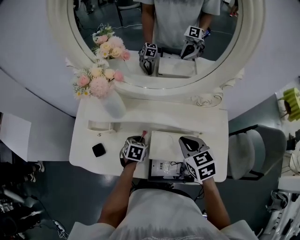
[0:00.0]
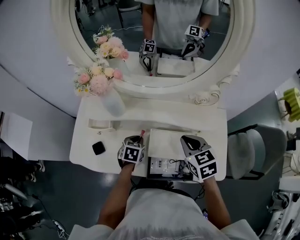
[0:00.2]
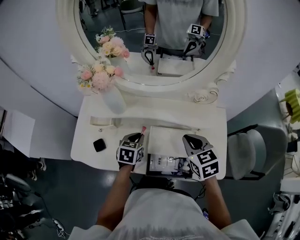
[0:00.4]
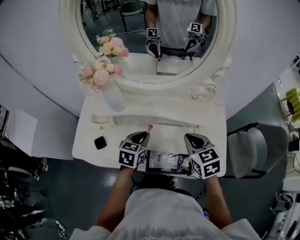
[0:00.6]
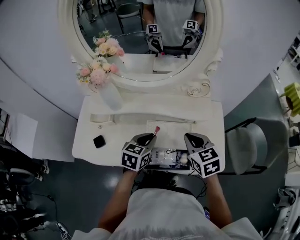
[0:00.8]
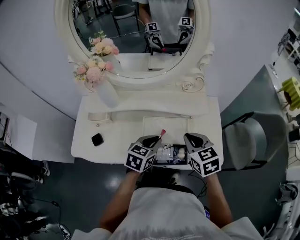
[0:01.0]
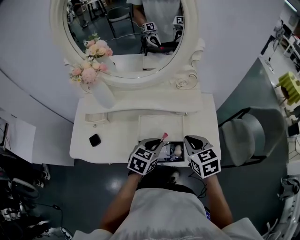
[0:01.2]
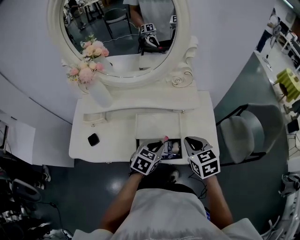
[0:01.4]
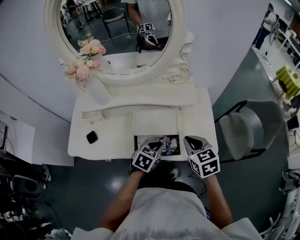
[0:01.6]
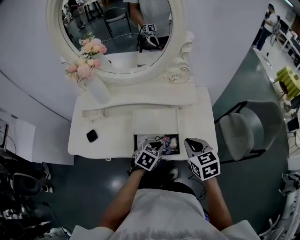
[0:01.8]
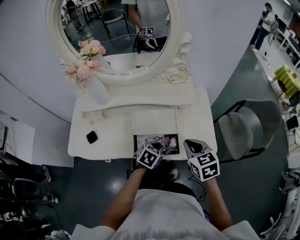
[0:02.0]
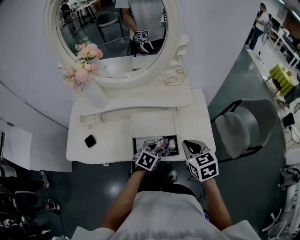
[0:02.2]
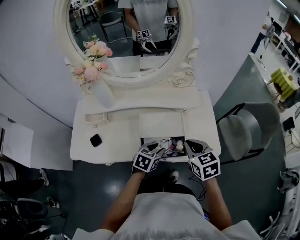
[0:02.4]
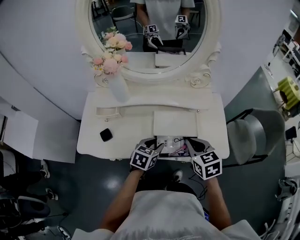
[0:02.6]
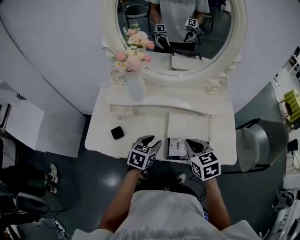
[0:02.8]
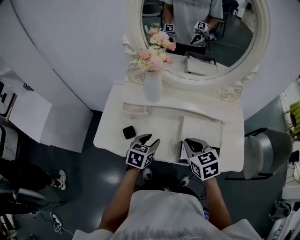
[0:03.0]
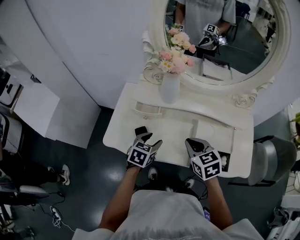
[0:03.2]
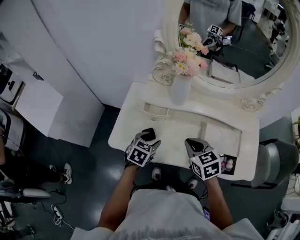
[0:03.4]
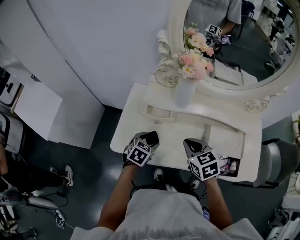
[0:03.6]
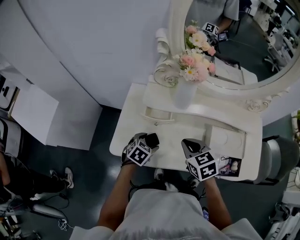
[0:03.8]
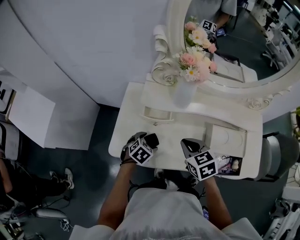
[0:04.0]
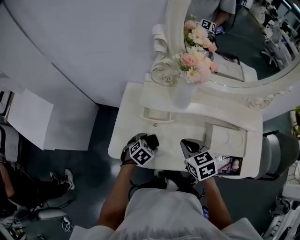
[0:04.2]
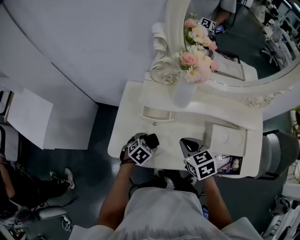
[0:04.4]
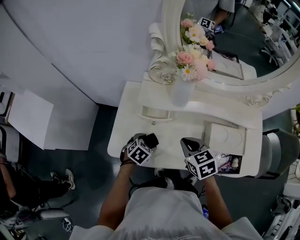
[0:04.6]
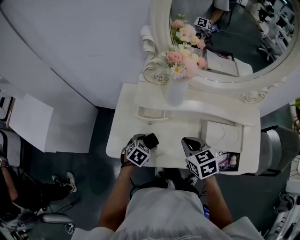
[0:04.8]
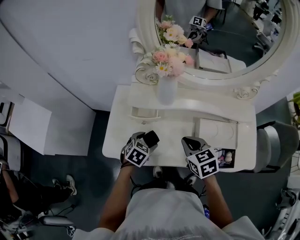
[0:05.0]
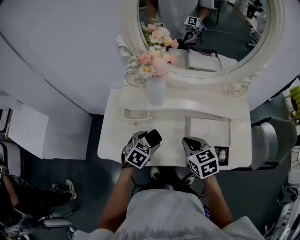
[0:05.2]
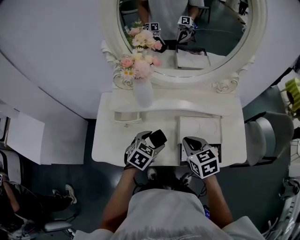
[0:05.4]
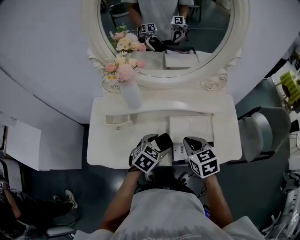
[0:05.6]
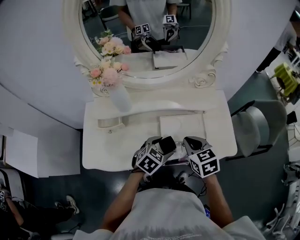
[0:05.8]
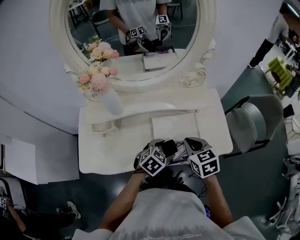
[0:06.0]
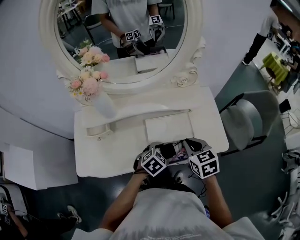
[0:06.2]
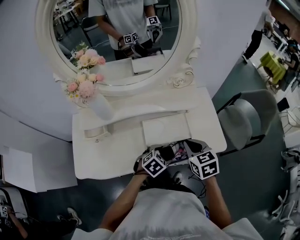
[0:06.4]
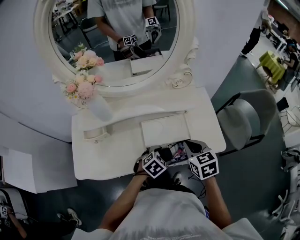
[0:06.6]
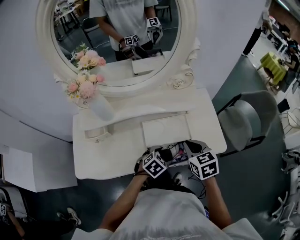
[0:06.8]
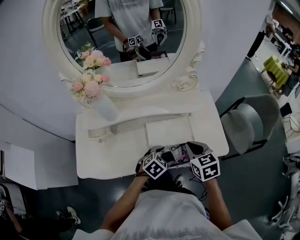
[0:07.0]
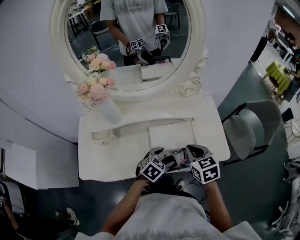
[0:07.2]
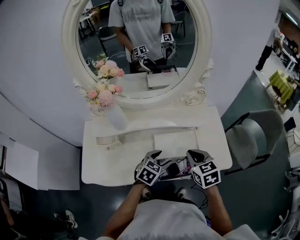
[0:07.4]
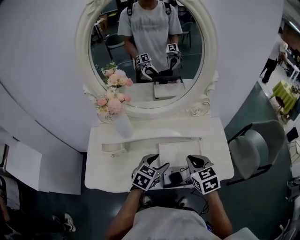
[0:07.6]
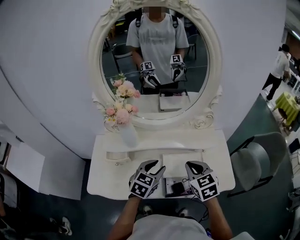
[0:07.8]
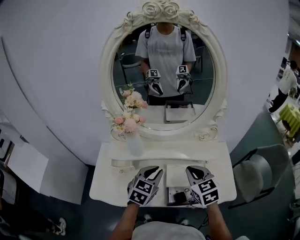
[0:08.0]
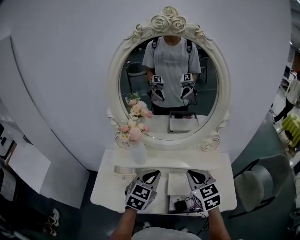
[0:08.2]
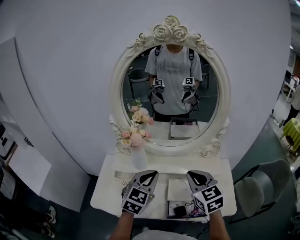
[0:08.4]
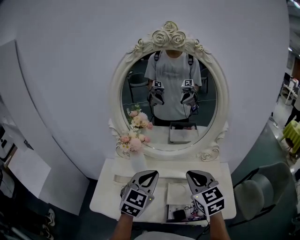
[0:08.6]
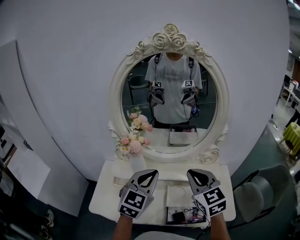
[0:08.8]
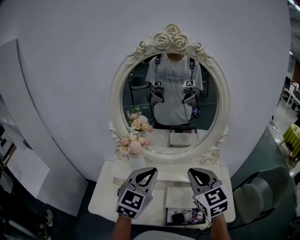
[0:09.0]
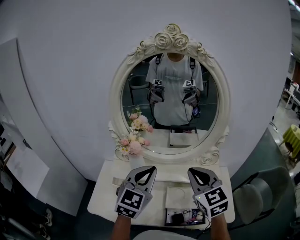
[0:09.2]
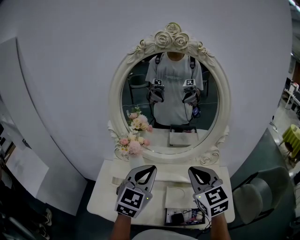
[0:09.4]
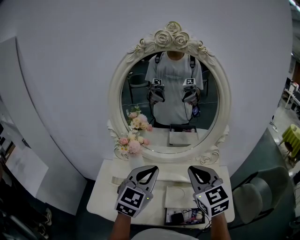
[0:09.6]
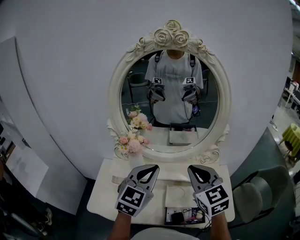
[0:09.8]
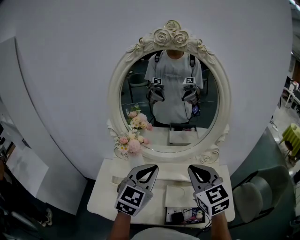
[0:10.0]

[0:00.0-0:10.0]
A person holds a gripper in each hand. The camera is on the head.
0:00.0 to 0:01.4: The right gripper moves backward and to the right, roughly 15 cm; the left gripper travels to the right, backward and upward by some 25 cm, and swivels about 30 degrees.
0:01.4 to 0:02.8: Both grippers move to the left, approximately 15 cm.
0:02.8 to 0:04.2: The left gripper shifts roughly 25 cm to the left and downward, turns by some 30 degrees, and opens up. Meanwhile the right gripper moves to the left, roughly 25 cm.
0:04.2 to 0:05.8: The two grippers go some 30 cm to the right. The left gripper rotates some 20 degrees.
0:05.8 to 0:07.2: The grippers both shift to the right by some 5 cm.
0:07.2 to 0:08.6: Both grippers travel together upward and to the left, about 30 cm. The right gripper turns by approximately 30 degrees. Meanwhile the left gripper angles its fingers upward, by some 30 degrees, and closes up.
0:08.6 to 0:10.0: The grippers move only a little.

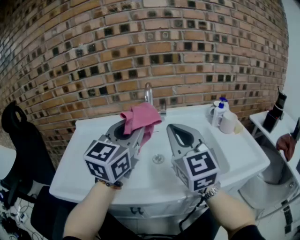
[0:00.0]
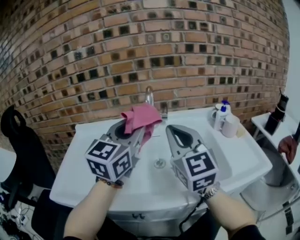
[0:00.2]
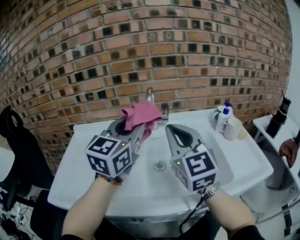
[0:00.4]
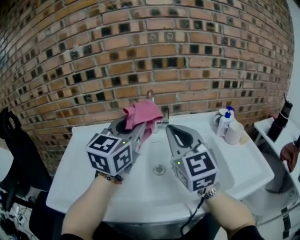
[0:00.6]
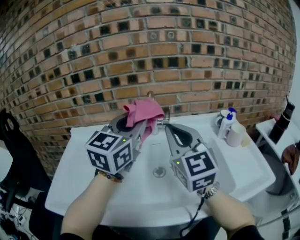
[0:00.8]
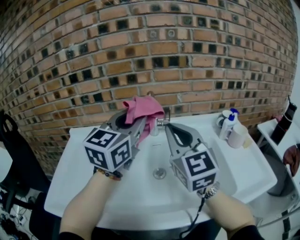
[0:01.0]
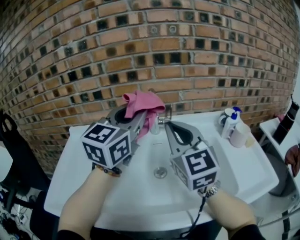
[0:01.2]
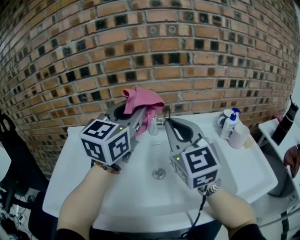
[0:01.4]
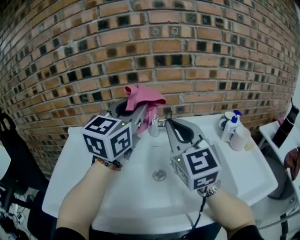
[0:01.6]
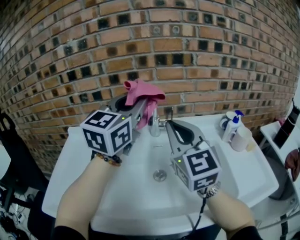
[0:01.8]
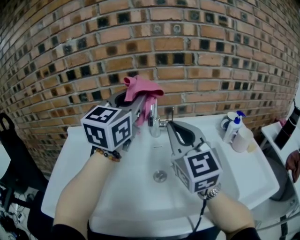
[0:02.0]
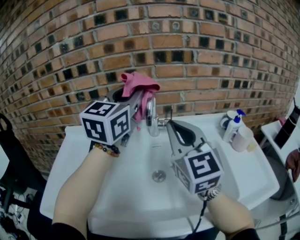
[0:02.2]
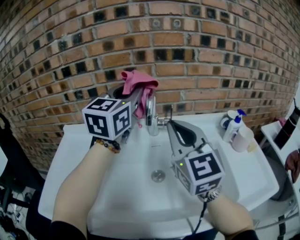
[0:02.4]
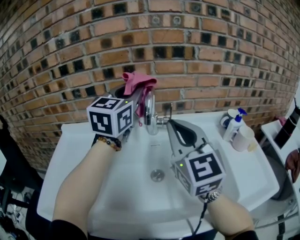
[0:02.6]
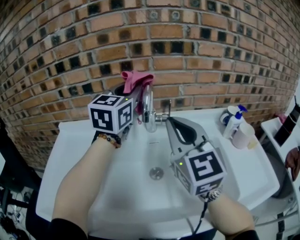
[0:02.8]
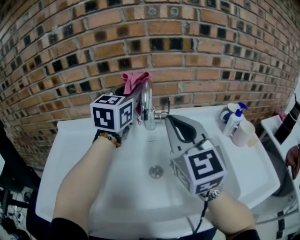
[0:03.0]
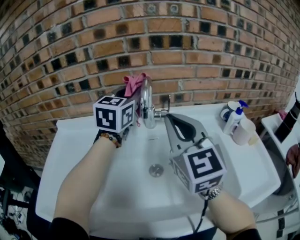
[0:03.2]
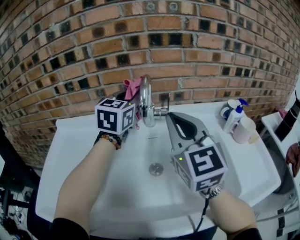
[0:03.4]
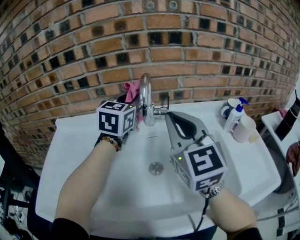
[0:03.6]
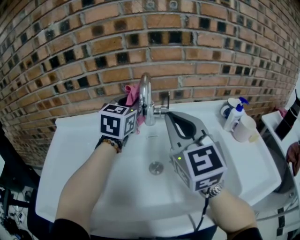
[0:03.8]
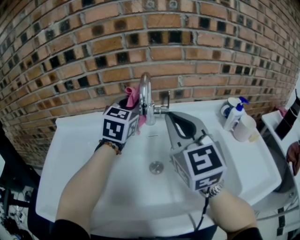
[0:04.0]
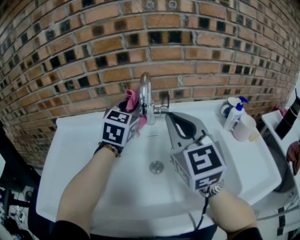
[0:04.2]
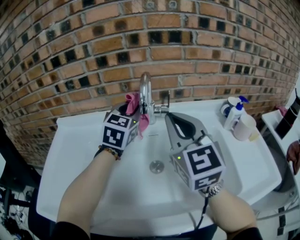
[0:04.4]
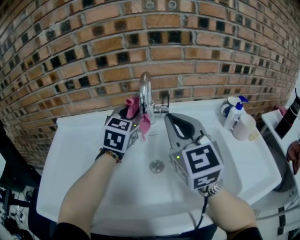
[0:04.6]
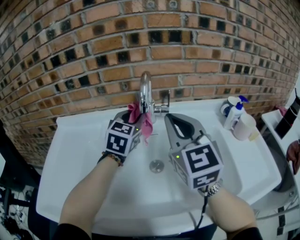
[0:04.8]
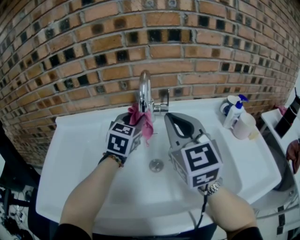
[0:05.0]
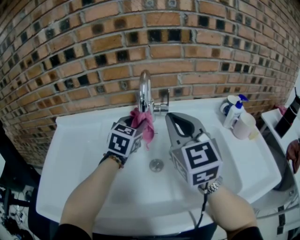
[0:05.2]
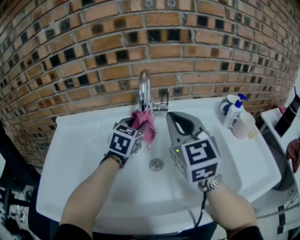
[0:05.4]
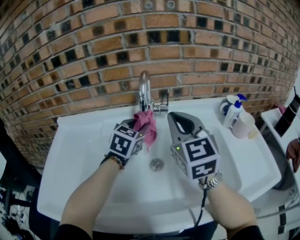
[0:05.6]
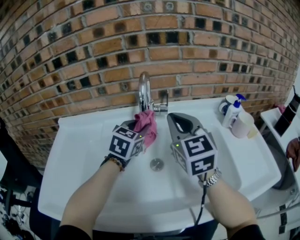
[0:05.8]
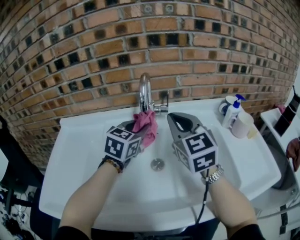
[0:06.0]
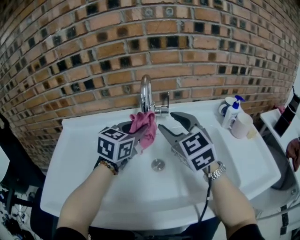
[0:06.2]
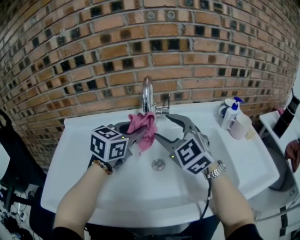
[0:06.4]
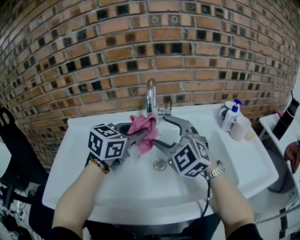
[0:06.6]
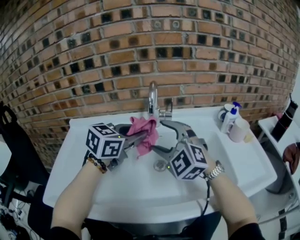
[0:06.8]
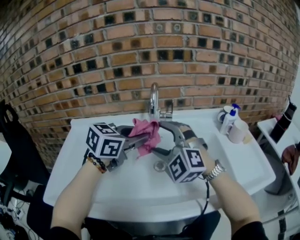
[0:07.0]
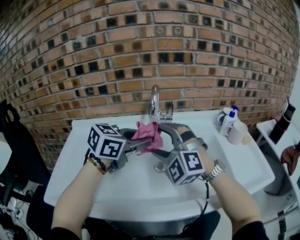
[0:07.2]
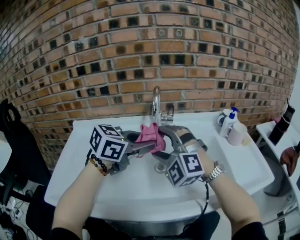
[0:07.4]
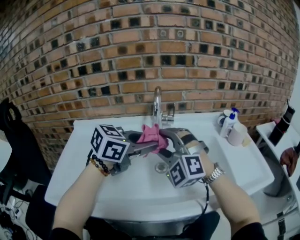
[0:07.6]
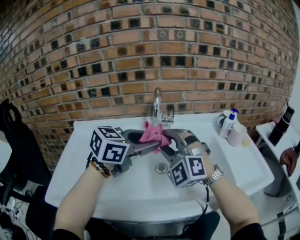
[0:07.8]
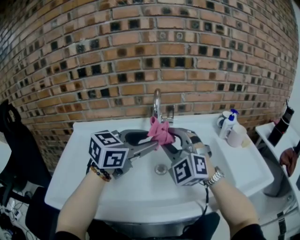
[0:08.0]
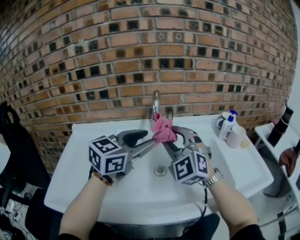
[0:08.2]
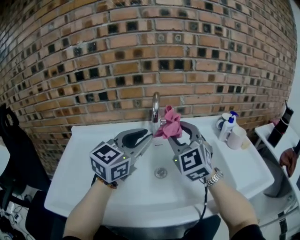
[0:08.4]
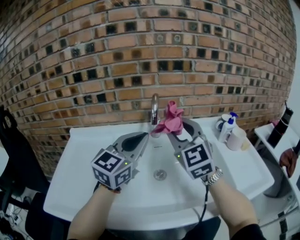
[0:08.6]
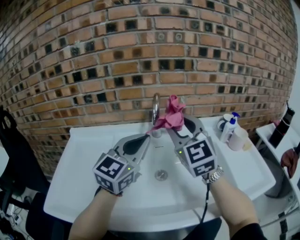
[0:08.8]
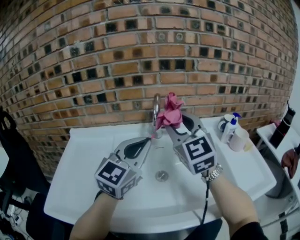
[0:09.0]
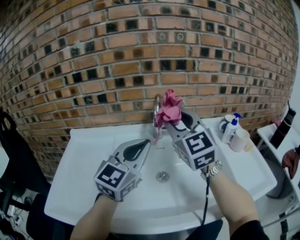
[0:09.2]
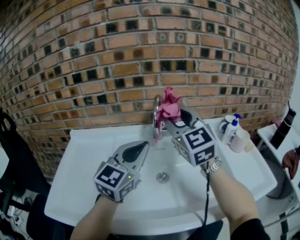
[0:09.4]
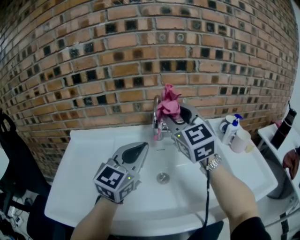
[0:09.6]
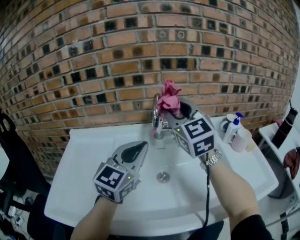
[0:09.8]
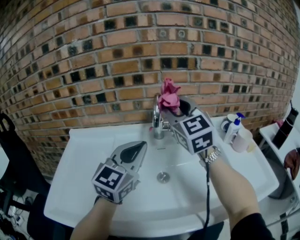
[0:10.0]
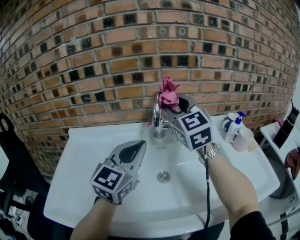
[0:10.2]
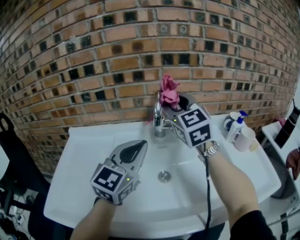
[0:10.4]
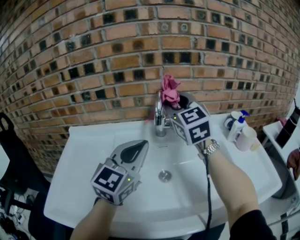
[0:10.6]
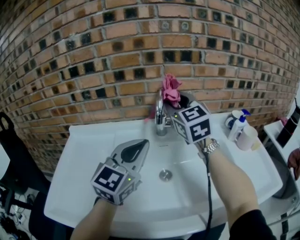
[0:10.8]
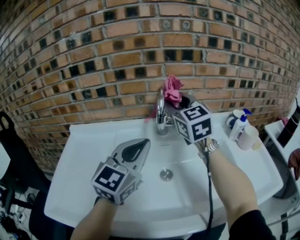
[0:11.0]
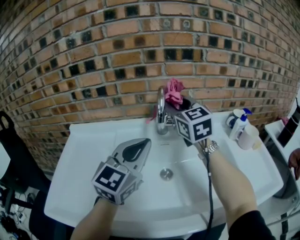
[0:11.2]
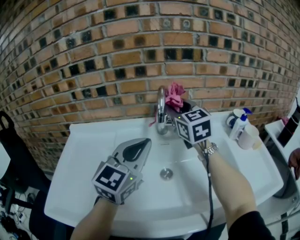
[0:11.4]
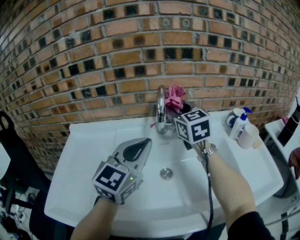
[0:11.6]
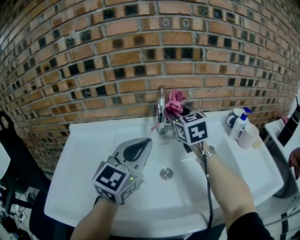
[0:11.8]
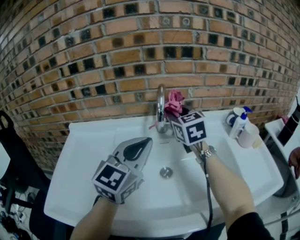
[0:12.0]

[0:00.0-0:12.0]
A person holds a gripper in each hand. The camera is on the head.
0:00.0 to 0:01.6: The grippers both shift forward by some 15 cm.
0:01.6 to 0:03.0: The left gripper shifts about 15 cm forward and downward.
0:03.0 to 0:04.4: The left gripper shifts some 10 cm downward.
0:04.4 to 0:06.0: The left gripper is displaced downward by some 5 cm.
0:06.0 to 0:07.6: The left gripper shifts approximately 15 cm backward and upward, and swivels approximately 30 degrees, while the right gripper heads backward and to the left, covering roughly 10 cm, rolls counterclockwise, seen from behind, by roughly 60 degrees, and opens its fingers.
0:07.6 to 0:09.0: The right gripper heads upward and forward, covering approximately 10 cm, and rotates around the line of its fingers by some 40 degrees, clockwise from behind; the left gripper changes its angle by roughly 40 degrees, and closes up.
0:09.0 to 0:10.4: The right gripper travels forward by roughly 10 cm.
0:10.4 to 0:12.0: The right gripper moves downward, approximately 10 cm.

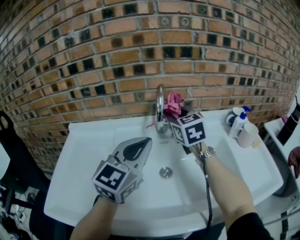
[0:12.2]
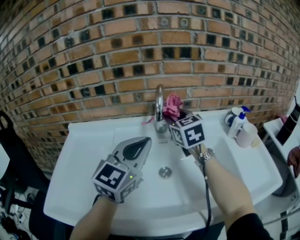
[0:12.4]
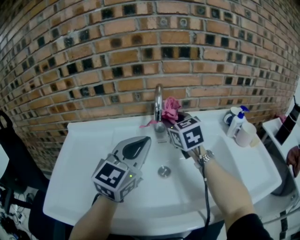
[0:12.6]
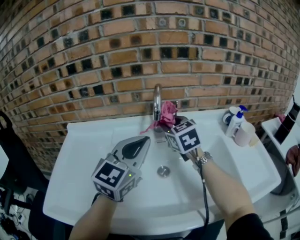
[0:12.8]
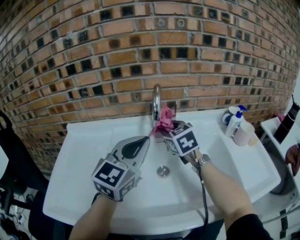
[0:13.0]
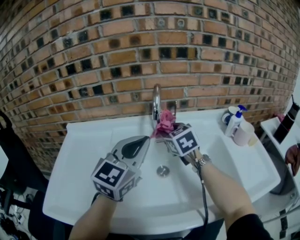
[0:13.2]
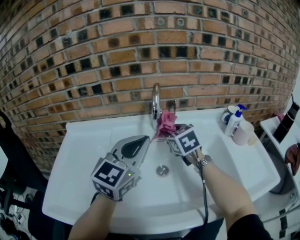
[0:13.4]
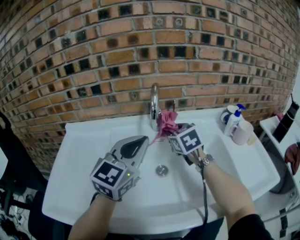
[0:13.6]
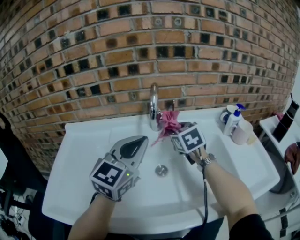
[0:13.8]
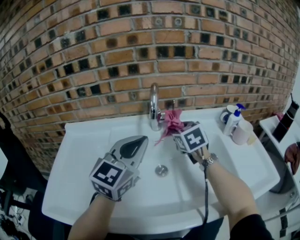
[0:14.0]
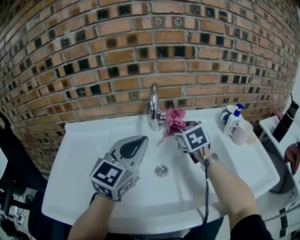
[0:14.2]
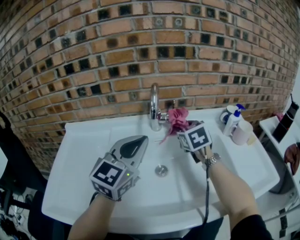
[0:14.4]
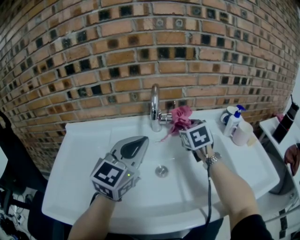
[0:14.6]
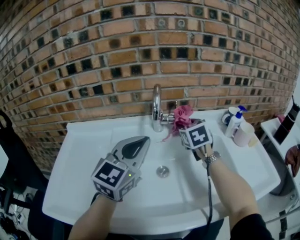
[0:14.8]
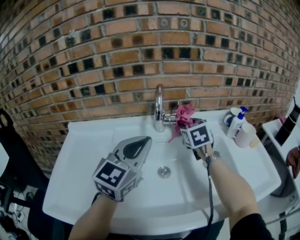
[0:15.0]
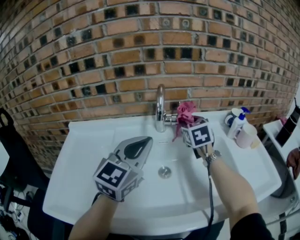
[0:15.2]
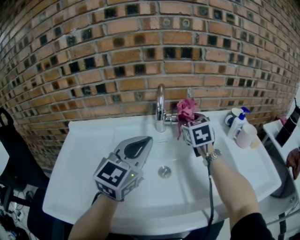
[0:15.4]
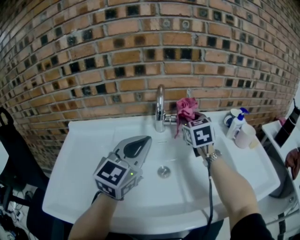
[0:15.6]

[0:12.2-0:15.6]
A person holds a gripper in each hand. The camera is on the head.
0:12.2 to 0:13.8: The right gripper travels downward by some 10 cm.
0:13.8 to 0:15.6: The right gripper heads upward, covering approximately 5 cm.
